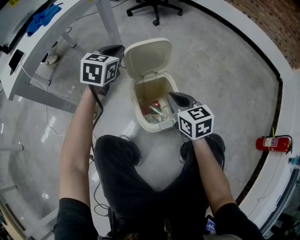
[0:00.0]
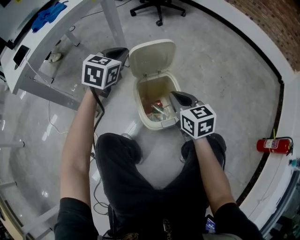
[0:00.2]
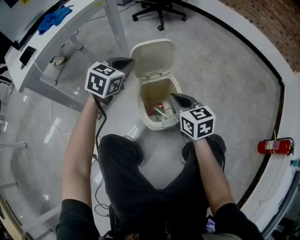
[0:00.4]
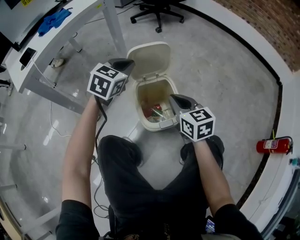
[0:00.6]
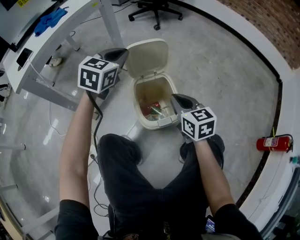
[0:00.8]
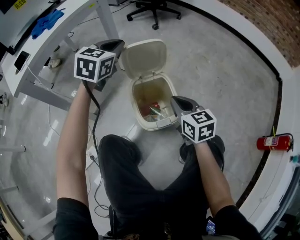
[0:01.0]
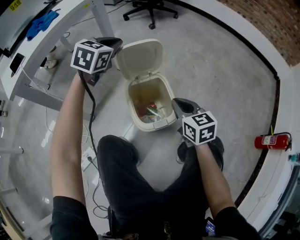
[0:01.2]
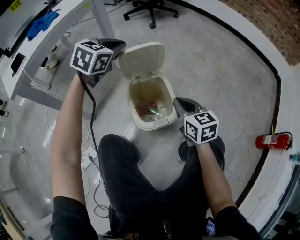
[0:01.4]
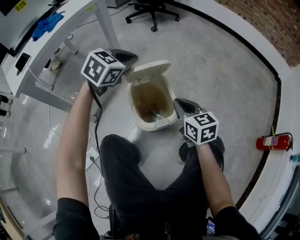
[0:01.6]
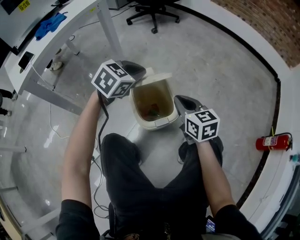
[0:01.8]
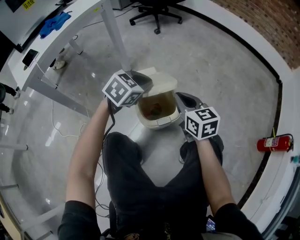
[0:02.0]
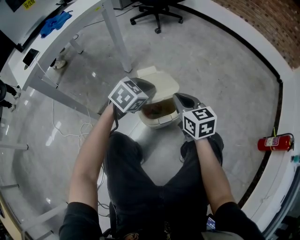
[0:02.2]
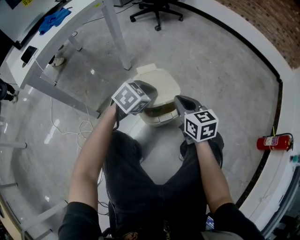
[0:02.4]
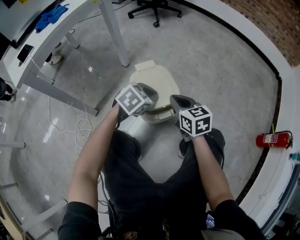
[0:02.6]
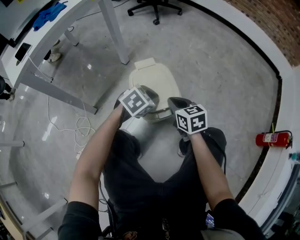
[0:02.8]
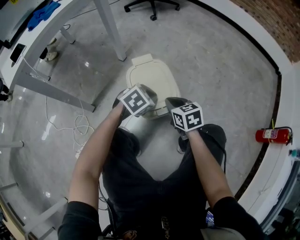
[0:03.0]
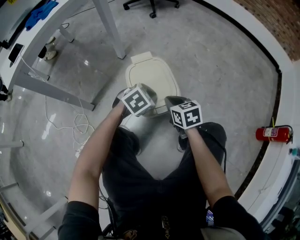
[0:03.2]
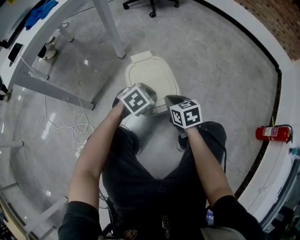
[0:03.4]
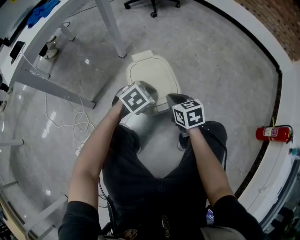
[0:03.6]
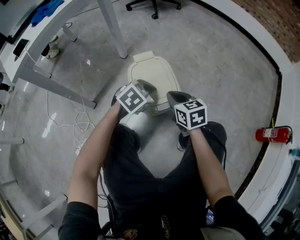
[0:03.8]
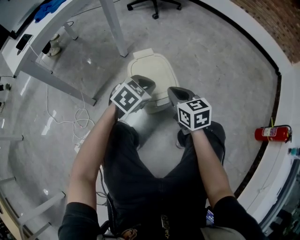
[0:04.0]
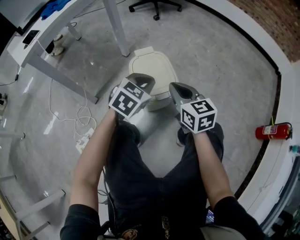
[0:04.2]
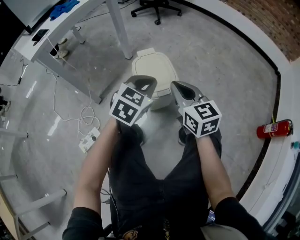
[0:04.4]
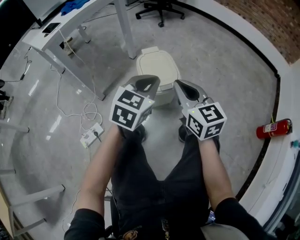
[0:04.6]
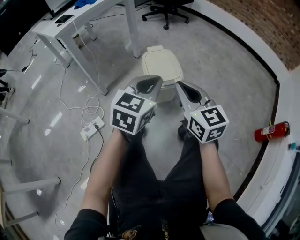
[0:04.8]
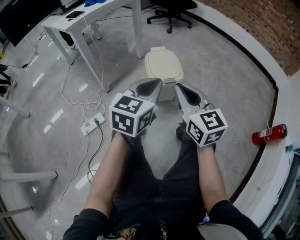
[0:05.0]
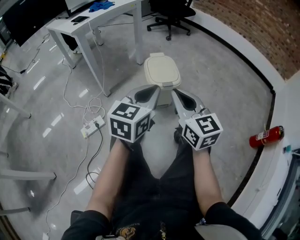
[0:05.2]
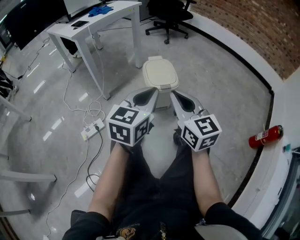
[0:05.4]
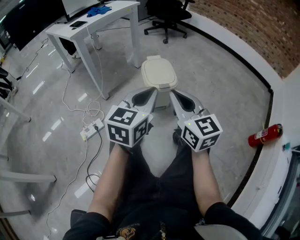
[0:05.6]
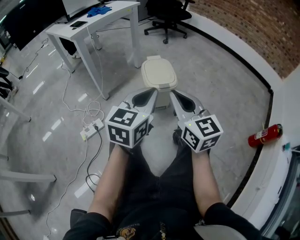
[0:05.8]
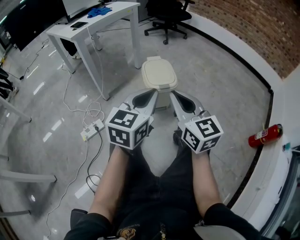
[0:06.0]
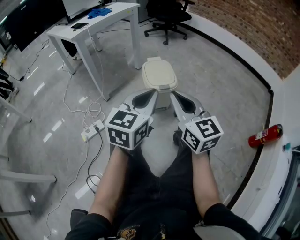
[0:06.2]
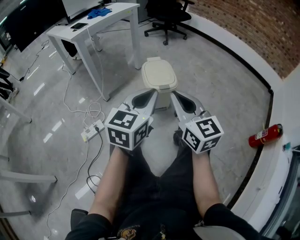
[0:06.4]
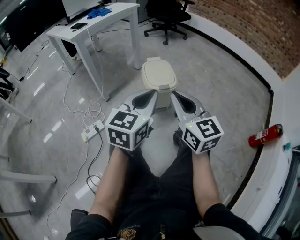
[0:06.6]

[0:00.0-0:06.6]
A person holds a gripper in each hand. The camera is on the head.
0:00.0 to 0:01.6: The left gripper heads to the right and backward, covering some 10 cm, and swivels about 30 degrees. The right gripper moves roughly 5 cm.
0:01.6 to 0:03.2: The right gripper heads downward, covering roughly 10 cm, while the left gripper heads downward, backward and to the right, covering about 25 cm, and changes its angle by some 20 degrees.
0:03.2 to 0:05.0: Both grippers move upward and backward, about 35 cm. The left gripper tips its fingers upward by approximately 40 degrees; the right gripper tips its fingers upward by roughly 40 degrees.
0:05.0 to 0:06.6: The two grippers go roughly 5 cm backward.

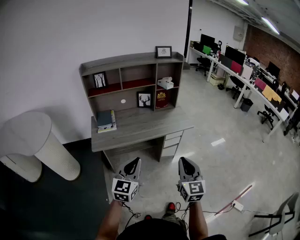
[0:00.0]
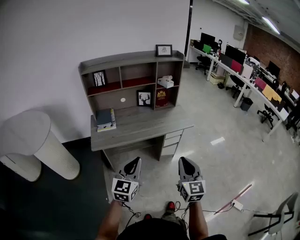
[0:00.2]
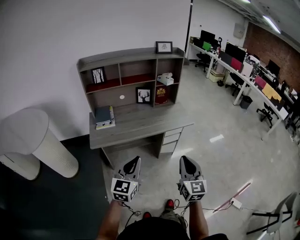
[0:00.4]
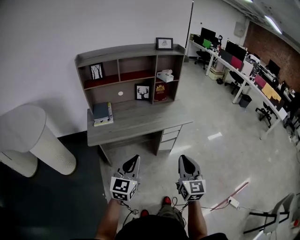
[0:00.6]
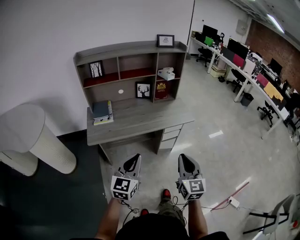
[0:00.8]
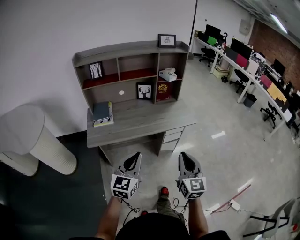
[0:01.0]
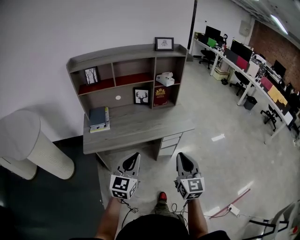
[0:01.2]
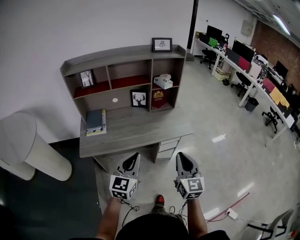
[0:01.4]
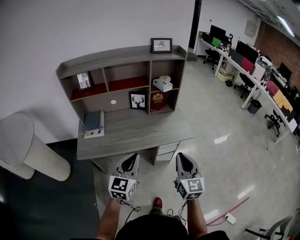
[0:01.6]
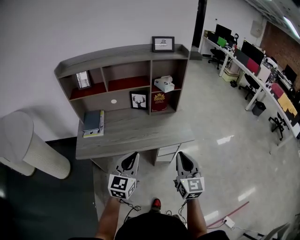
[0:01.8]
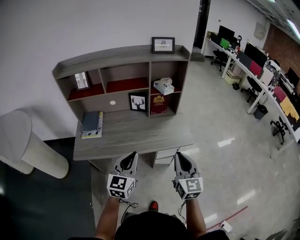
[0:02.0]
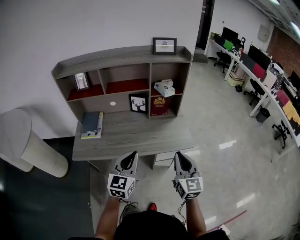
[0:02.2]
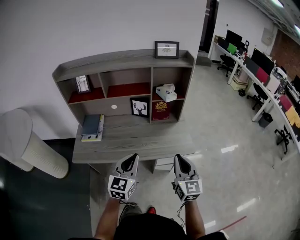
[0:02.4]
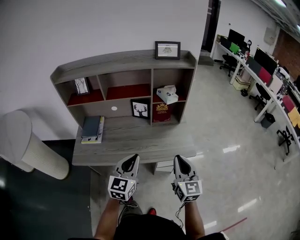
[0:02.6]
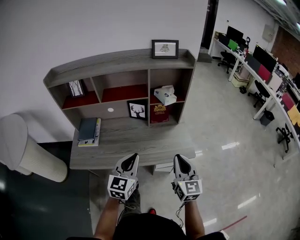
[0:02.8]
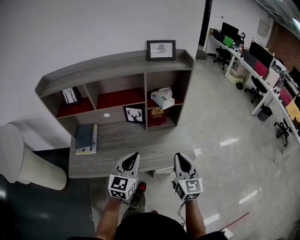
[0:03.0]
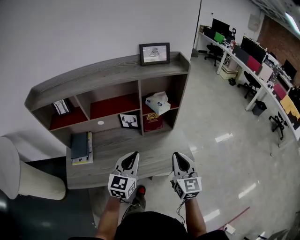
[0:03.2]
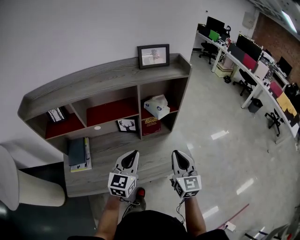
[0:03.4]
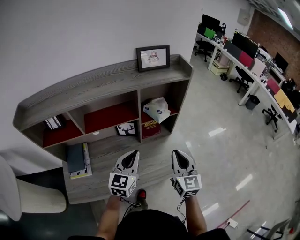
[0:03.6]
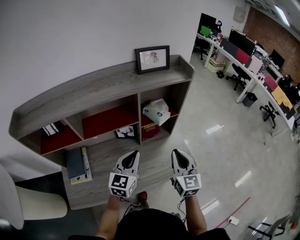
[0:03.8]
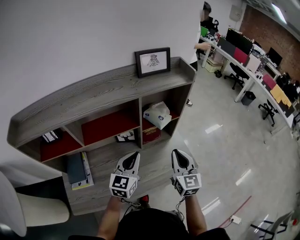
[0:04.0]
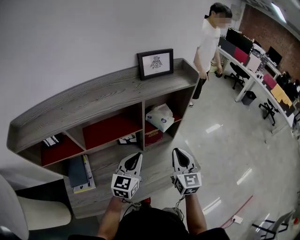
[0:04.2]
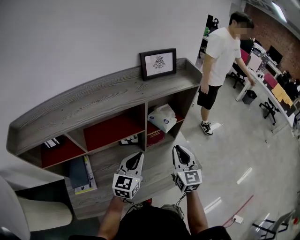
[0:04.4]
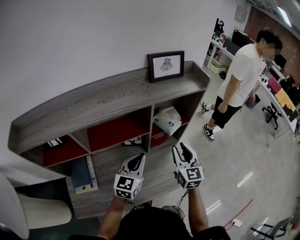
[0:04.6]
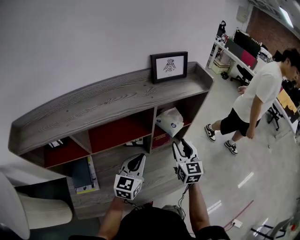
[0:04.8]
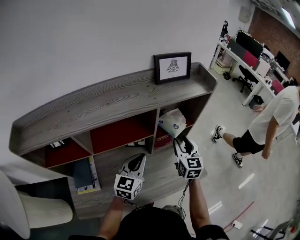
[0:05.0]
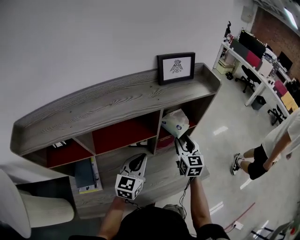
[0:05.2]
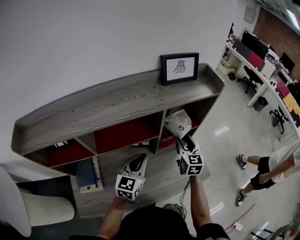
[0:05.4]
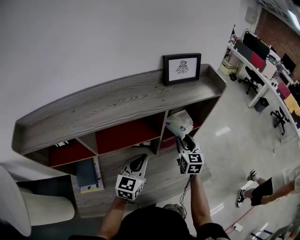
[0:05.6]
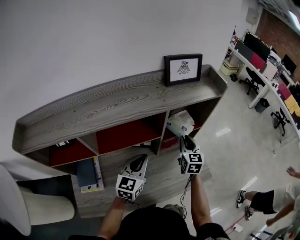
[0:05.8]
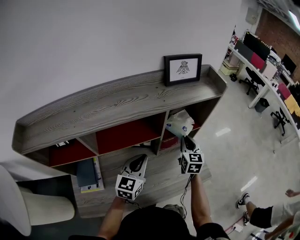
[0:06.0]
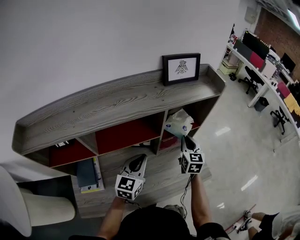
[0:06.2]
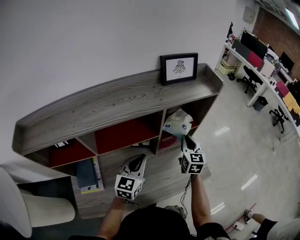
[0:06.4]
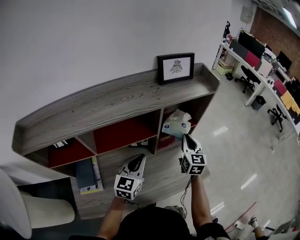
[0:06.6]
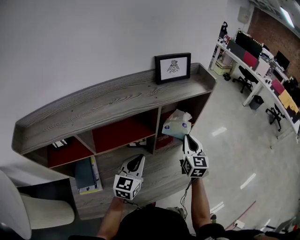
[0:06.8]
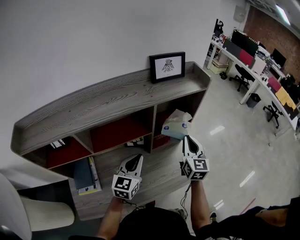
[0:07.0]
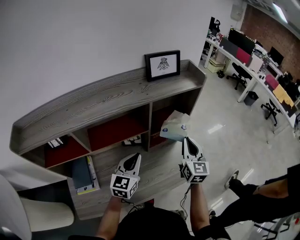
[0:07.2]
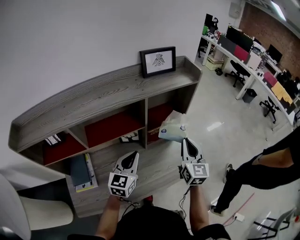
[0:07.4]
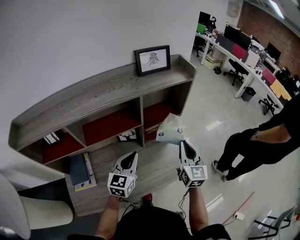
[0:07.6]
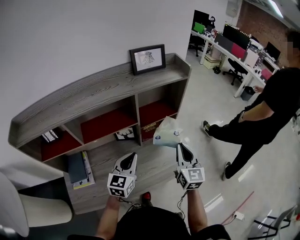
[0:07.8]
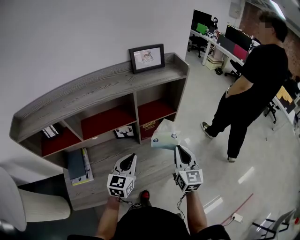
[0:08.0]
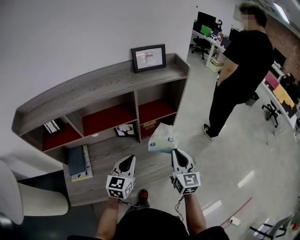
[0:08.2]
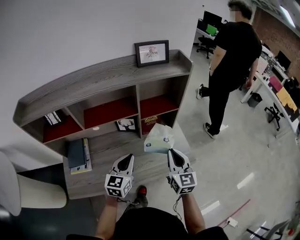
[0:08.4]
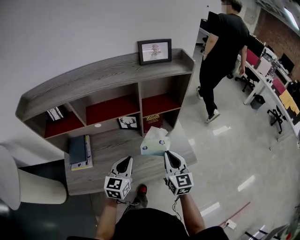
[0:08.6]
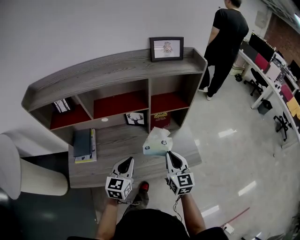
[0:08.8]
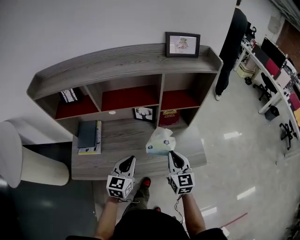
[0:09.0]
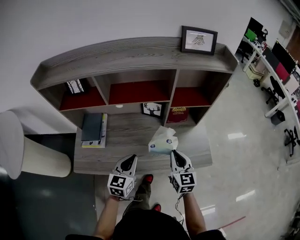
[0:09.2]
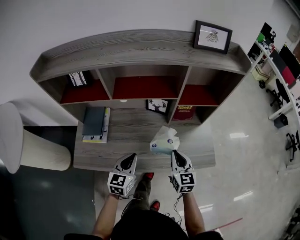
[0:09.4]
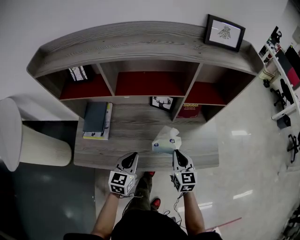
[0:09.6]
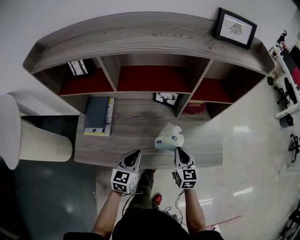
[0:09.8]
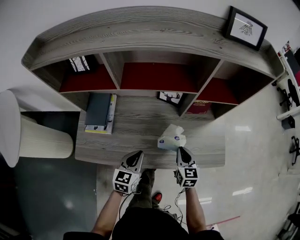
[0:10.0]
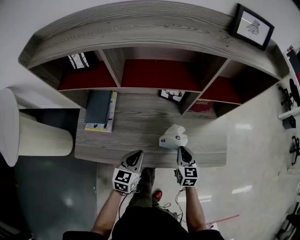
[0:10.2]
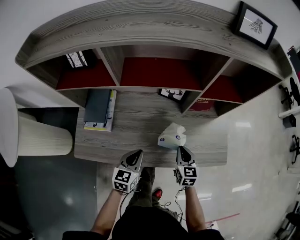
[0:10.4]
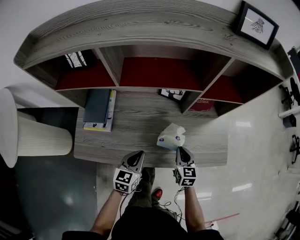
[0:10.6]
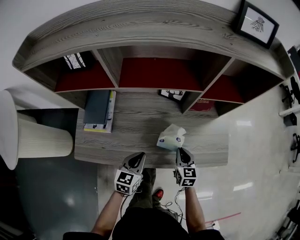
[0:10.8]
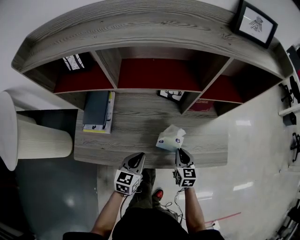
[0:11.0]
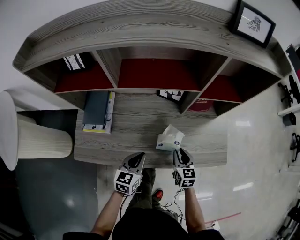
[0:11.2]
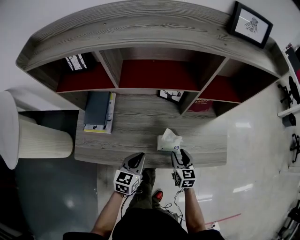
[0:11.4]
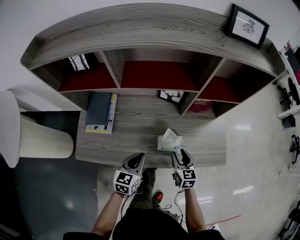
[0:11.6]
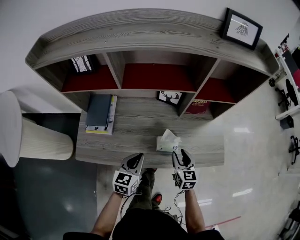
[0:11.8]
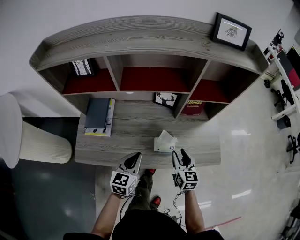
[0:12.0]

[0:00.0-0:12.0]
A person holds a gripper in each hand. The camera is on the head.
0:00.0 to 0:01.6: Both grippers move forward, some 20 cm.
0:01.6 to 0:03.0: Both grippers move forward, roughly 20 cm.
0:03.0 to 0:04.4: The left gripper shifts roughly 20 cm forward; the right gripper shifts some 20 cm forward and to the left.
0:04.4 to 0:06.0: The right gripper travels forward and downward by approximately 15 cm, and opens, then closes once more. The left gripper moves about 5 cm.
0:06.0 to 0:07.6: The left gripper changes place by roughly 5 cm. Meanwhile the right gripper moves backward, upward and to the right, some 20 cm.
0:07.6 to 0:09.0: The left gripper travels backward and downward by approximately 15 cm, while the right gripper heads downward, backward and to the left, covering about 15 cm, and swivels some 20 degrees.
0:09.0 to 0:10.4: The left gripper travels downward and to the left by about 15 cm, while the right gripper heads downward, covering approximately 20 cm.
0:10.4 to 0:12.0: Both grippers travel together upward, about 5 cm. The right gripper opens up.

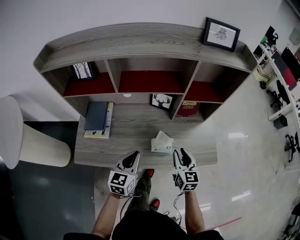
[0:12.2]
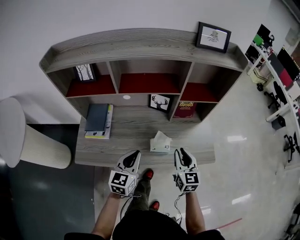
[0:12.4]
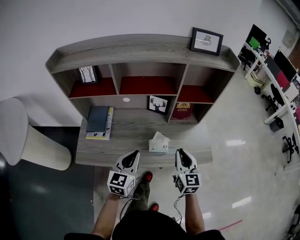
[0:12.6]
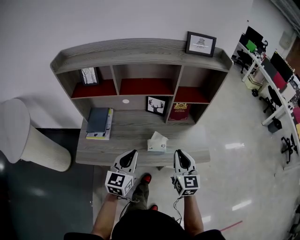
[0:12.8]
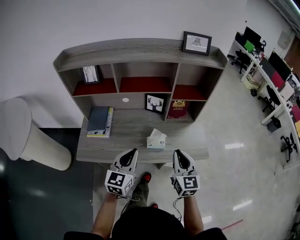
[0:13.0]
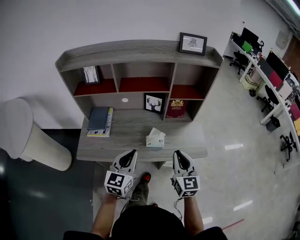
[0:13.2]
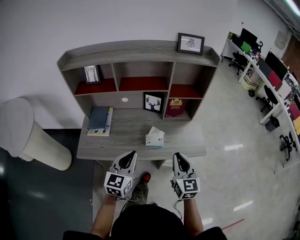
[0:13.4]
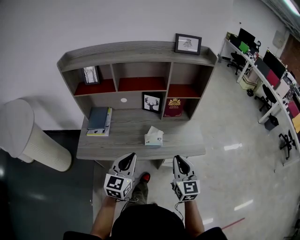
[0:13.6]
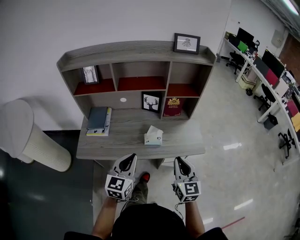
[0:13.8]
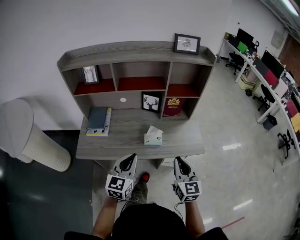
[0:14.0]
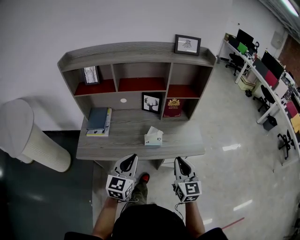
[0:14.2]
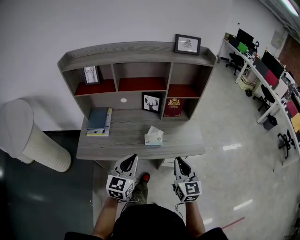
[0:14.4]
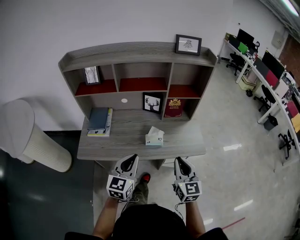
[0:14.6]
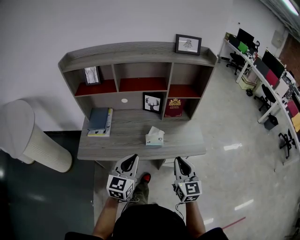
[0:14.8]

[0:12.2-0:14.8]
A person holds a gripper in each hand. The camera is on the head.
0:12.2 to 0:13.4: Both grippers travel together backward and upward, approximately 20 cm. The right gripper closes.
0:13.4 to 0:14.8: The grippers stay close to where they were, moving slightly.

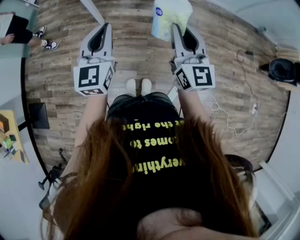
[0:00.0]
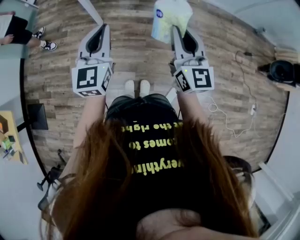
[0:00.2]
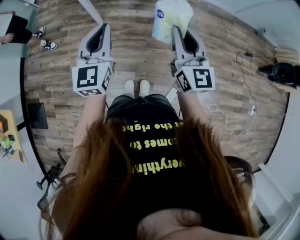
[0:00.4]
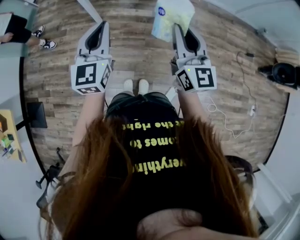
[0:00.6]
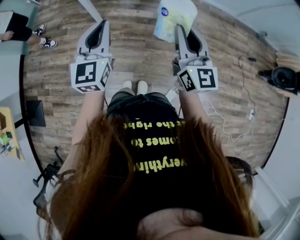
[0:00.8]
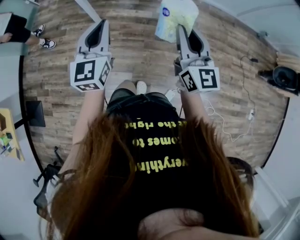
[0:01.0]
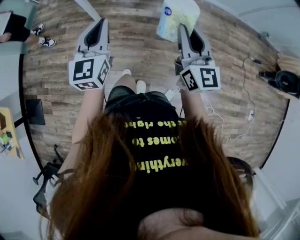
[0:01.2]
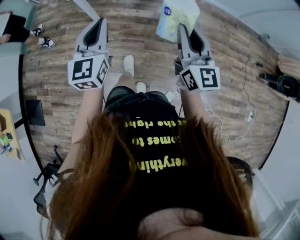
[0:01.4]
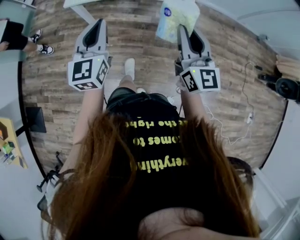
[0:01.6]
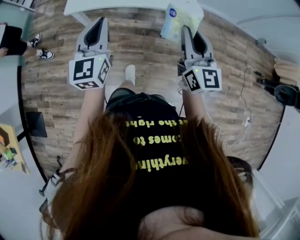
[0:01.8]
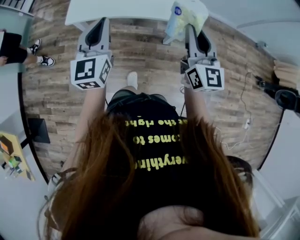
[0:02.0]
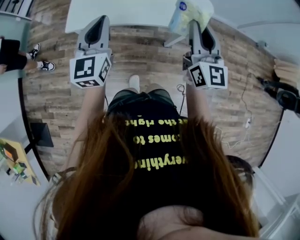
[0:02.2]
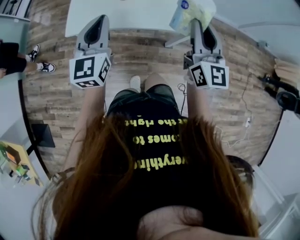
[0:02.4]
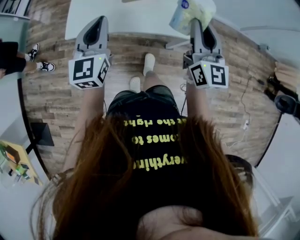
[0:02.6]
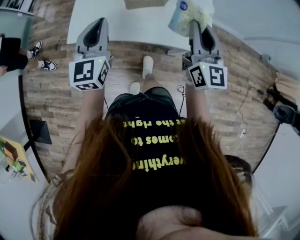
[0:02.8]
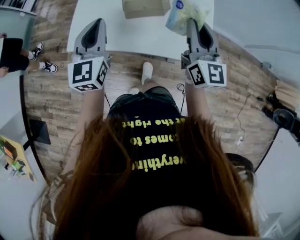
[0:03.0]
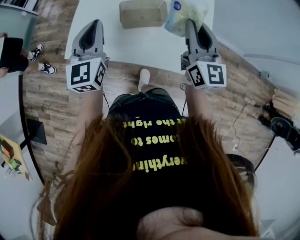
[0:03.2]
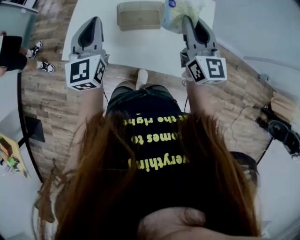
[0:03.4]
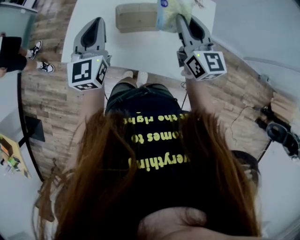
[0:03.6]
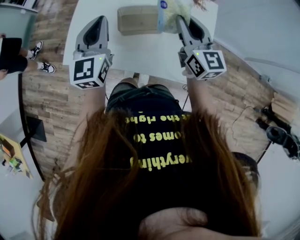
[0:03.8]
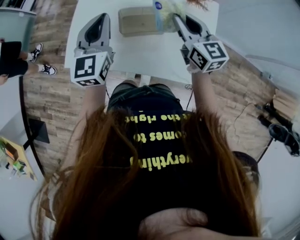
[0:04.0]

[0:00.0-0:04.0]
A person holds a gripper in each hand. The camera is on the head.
0:00.0 to 0:01.4: The right gripper shifts about 10 cm forward and to the right. Meanwhile the left gripper is displaced forward by roughly 10 cm.
0:01.4 to 0:02.6: The two grippers go about 35 cm forward.
0:02.6 to 0:04.0: The two grippers go roughly 25 cm forward. The right gripper changes its angle by some 30 degrees.
